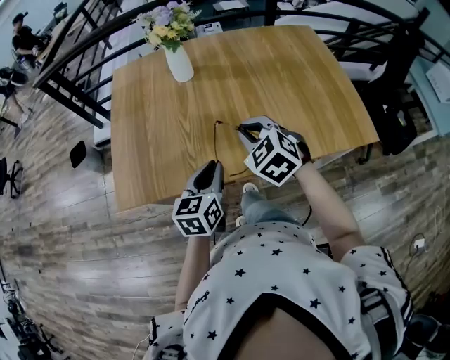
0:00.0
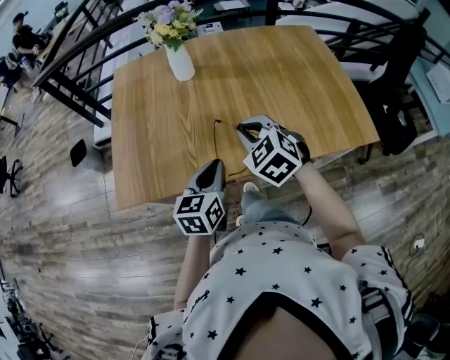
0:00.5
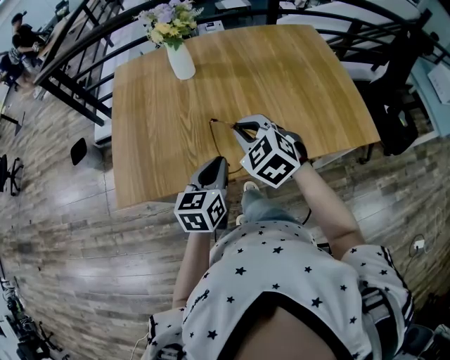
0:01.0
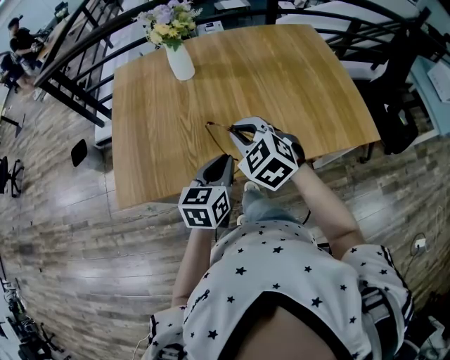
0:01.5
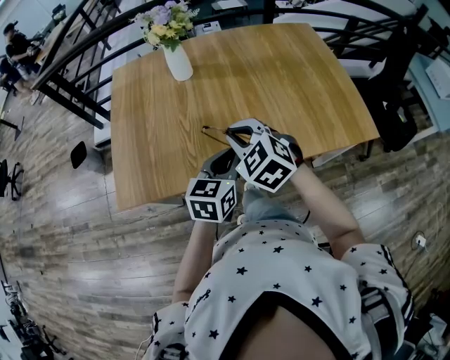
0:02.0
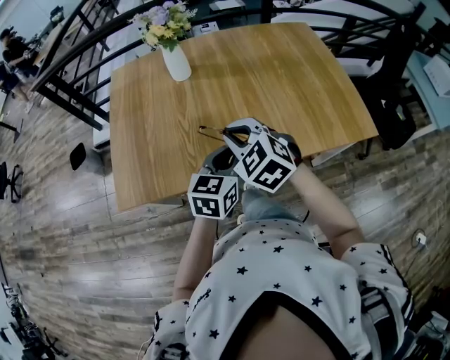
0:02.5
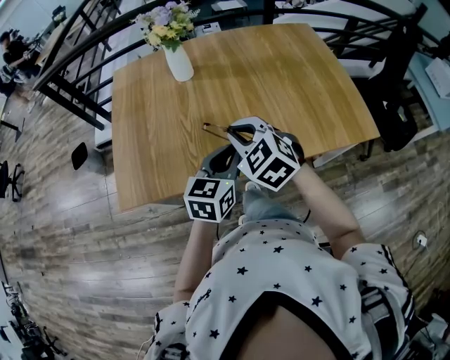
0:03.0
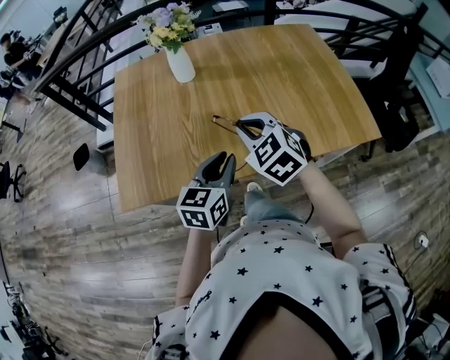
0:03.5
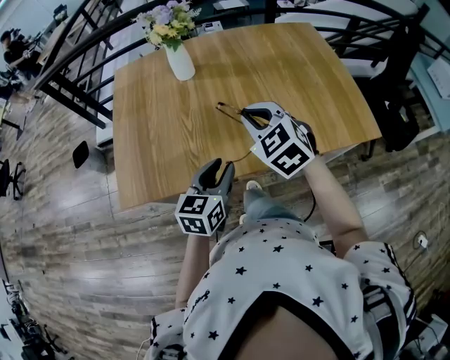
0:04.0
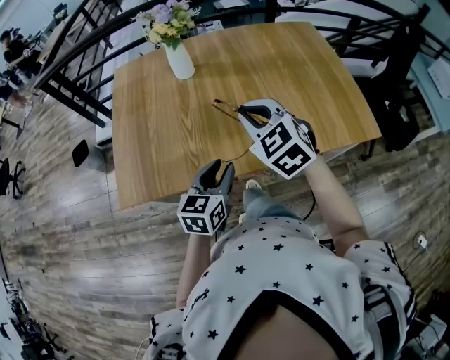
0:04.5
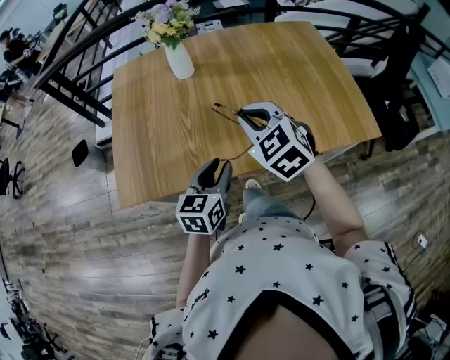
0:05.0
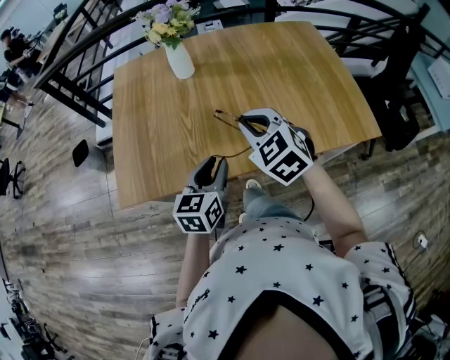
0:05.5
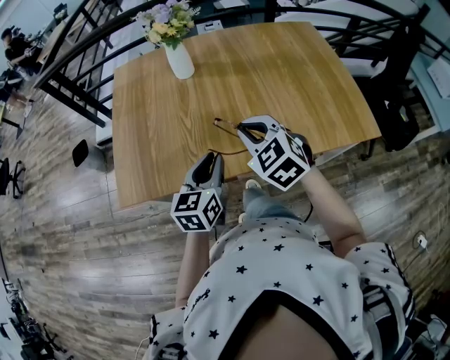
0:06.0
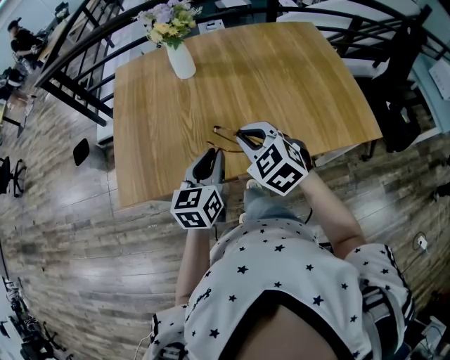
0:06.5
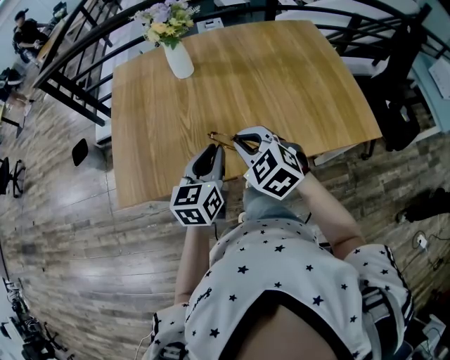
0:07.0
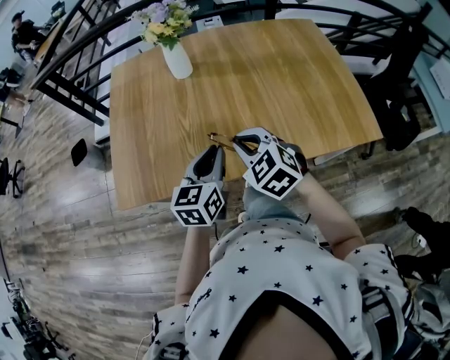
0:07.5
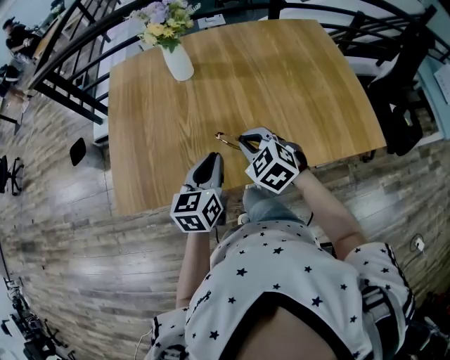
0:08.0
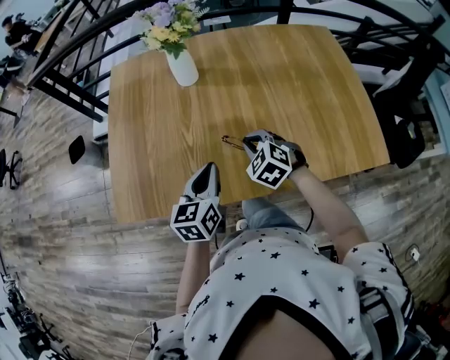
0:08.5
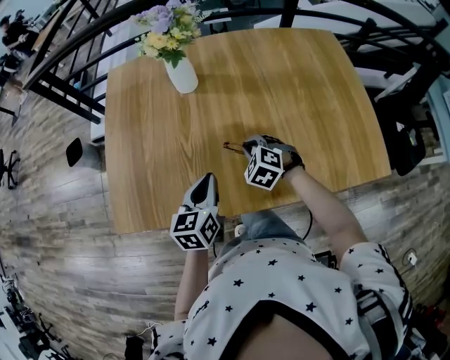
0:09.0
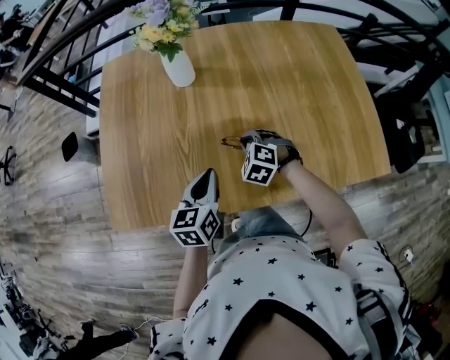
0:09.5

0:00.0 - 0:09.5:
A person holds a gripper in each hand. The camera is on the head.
0:00.0 - 0:02.0: The left gripper travels to the right by about 5 cm.
0:02.0 - 0:04.0: The left gripper opens. The right gripper shifts by about 5 cm.
0:04.0 - 0:05.5: The grippers make only small movements.
0:05.5 - 0:07.5: The right gripper shifts roughly 5 cm downward.
0:07.5 - 0:09.5: The left gripper heads forward and downward, covering approximately 10 cm. Meanwhile the right gripper heads downward and forward, covering roughly 25 cm, and swivels some 30 degrees.

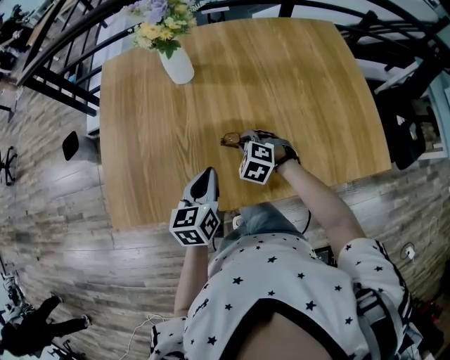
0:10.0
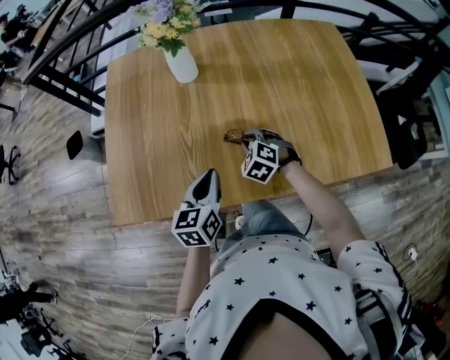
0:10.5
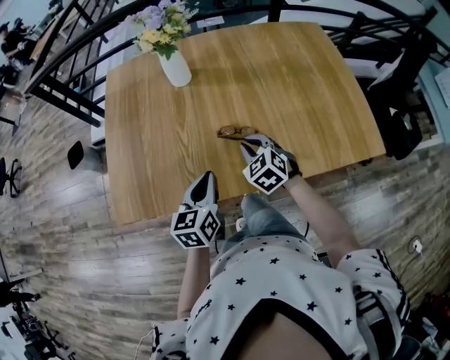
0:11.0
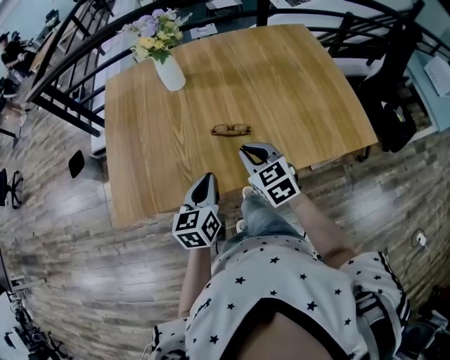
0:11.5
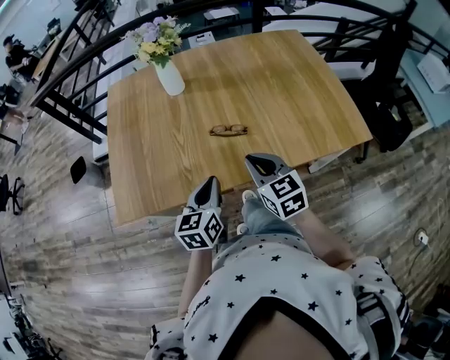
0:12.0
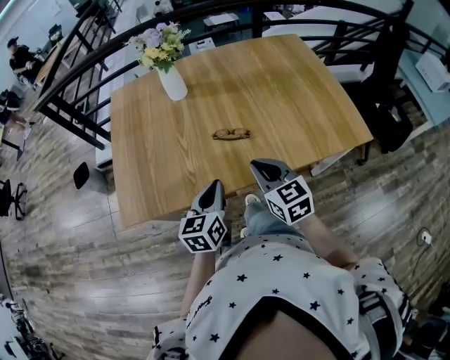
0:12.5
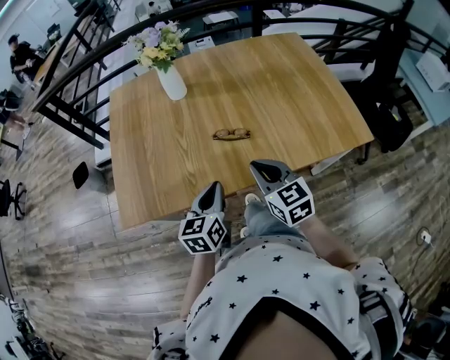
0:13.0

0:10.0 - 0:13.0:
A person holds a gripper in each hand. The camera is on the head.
0:10.0 - 0:11.5: The right gripper goes some 20 cm upward and backward, and points its fingers approximately 30 degrees further upward, while the left gripper shifts some 10 cm backward.
0:11.5 - 0:13.0: The right gripper goes some 5 cm backward.

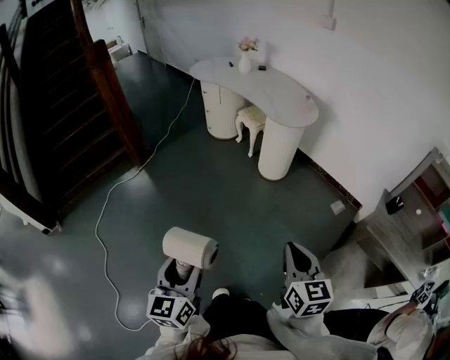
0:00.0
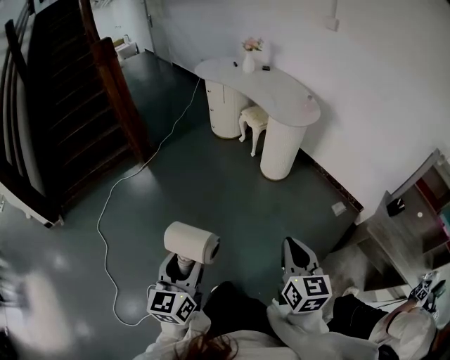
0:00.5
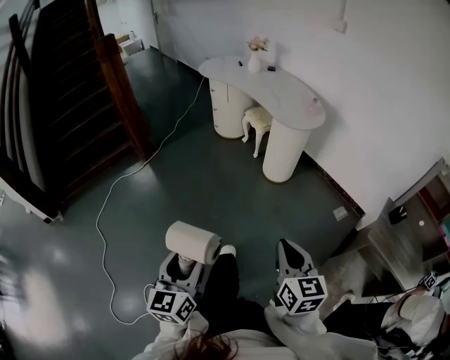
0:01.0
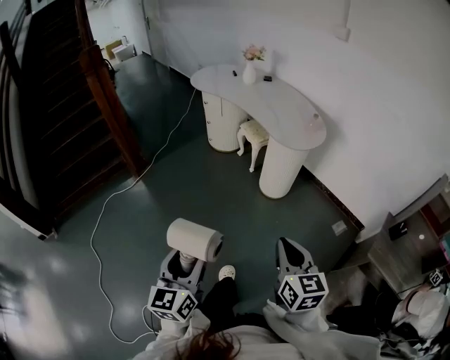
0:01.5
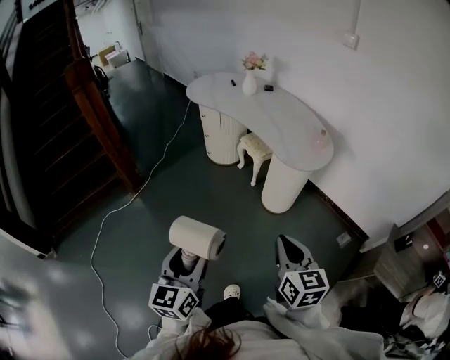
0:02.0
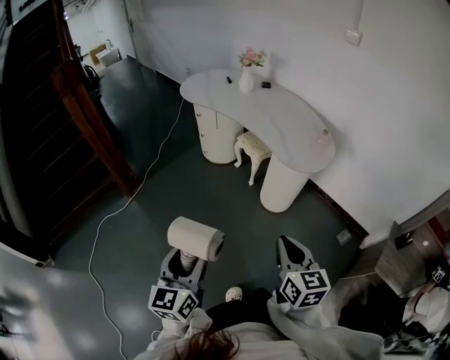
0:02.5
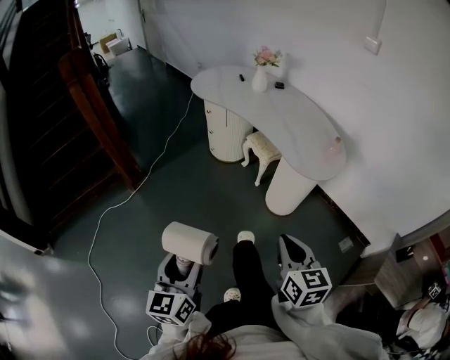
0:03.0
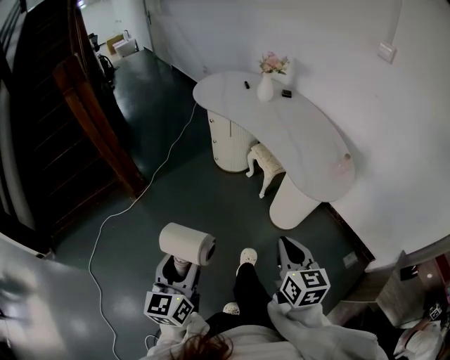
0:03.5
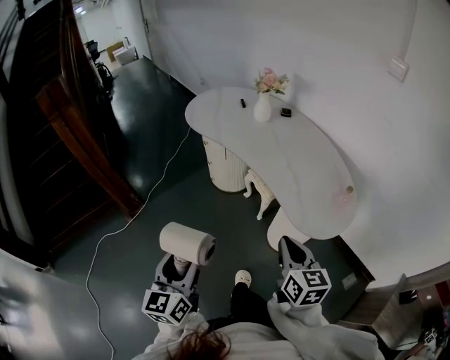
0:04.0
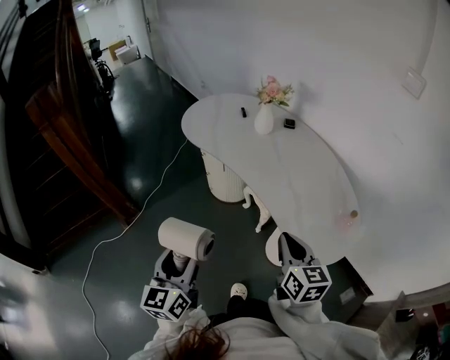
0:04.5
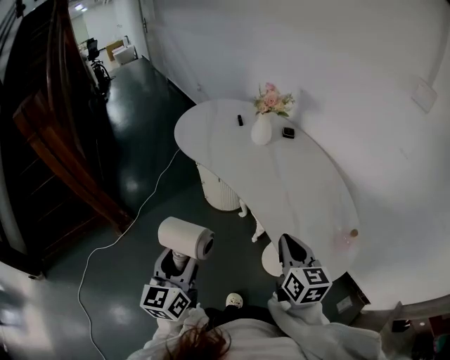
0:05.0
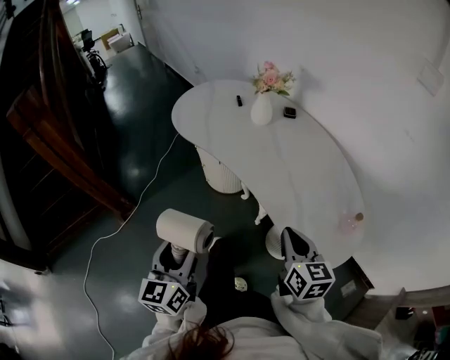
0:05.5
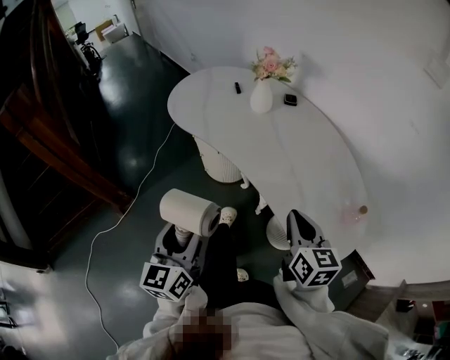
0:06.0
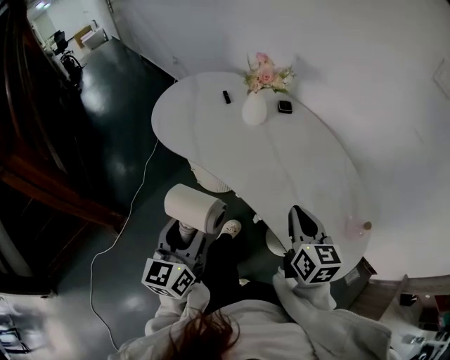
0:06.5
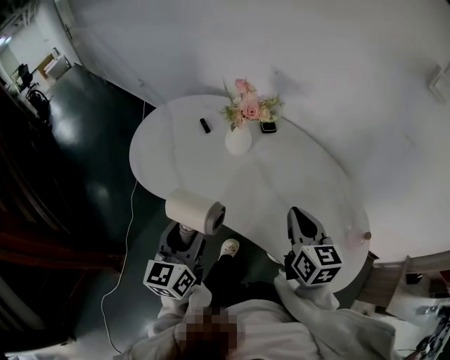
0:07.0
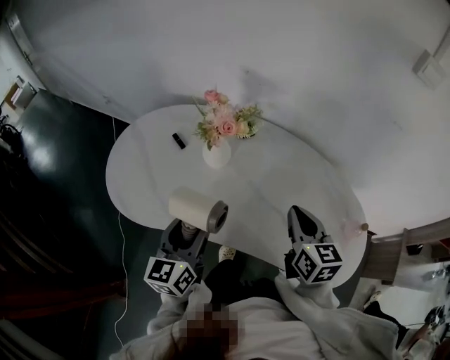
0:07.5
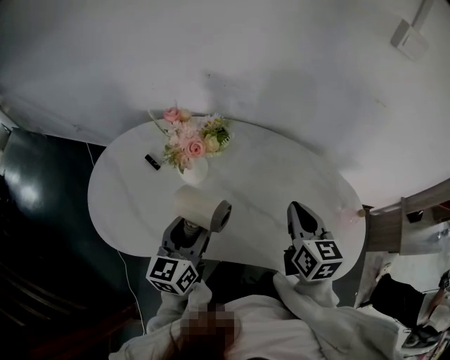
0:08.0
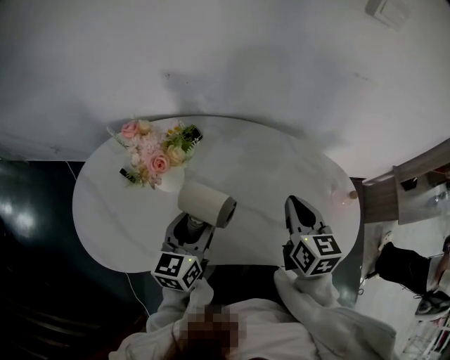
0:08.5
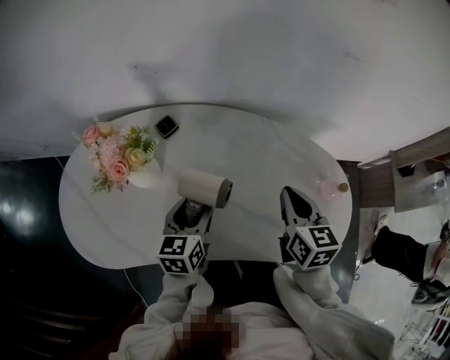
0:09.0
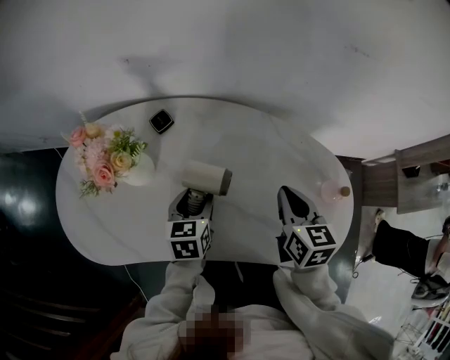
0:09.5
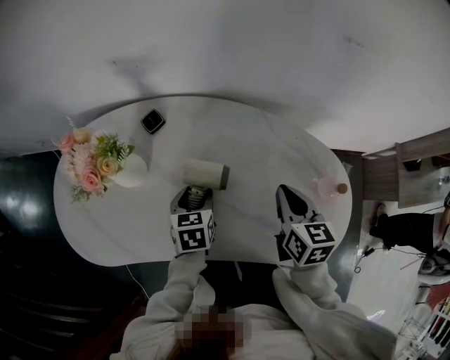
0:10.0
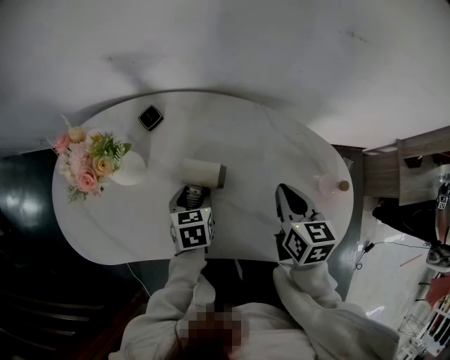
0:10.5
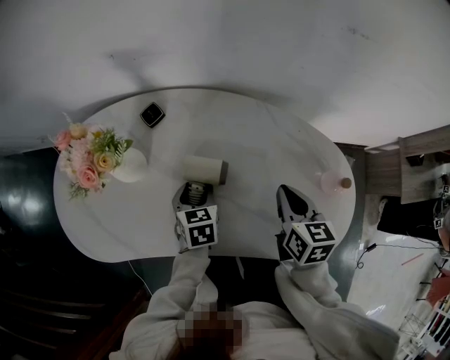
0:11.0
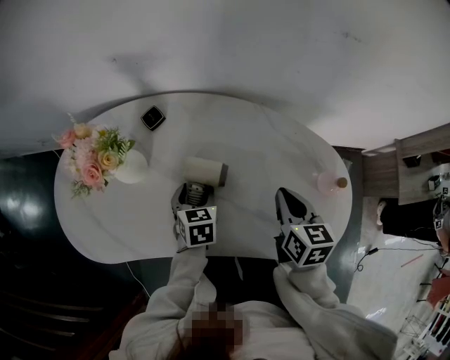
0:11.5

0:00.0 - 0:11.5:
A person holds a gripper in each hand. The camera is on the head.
0:00.0 - 0:02.0: The grippers both shift forward by roughly 30 cm.
0:02.0 - 0:04.0: Both grippers move forward, some 30 cm.
0:04.0 - 0:06.0: The two grippers go about 20 cm forward.
0:06.0 - 0:07.5: The right gripper changes place by roughly 25 cm, and changes its angle by roughly 30 degrees; the left gripper shifts by roughly 35 cm, and swivels some 30 degrees.
0:07.5 - 0:09.5: The left gripper moves forward, to the right and downward, roughly 25 cm, and angles its fingers downward, by approximately 30 degrees. The right gripper heads to the right, downward and forward, covering approximately 15 cm, and changes its angle by roughly 20 degrees.
0:09.5 - 0:11.5: The left gripper shifts roughly 5 cm downward.

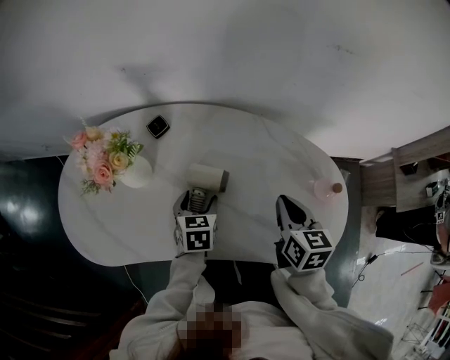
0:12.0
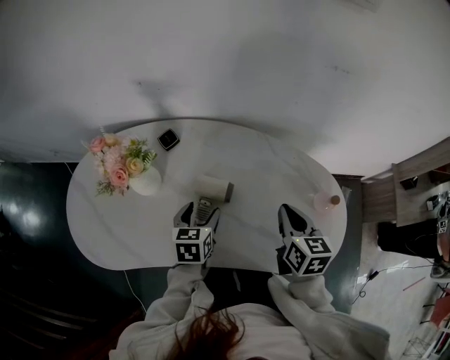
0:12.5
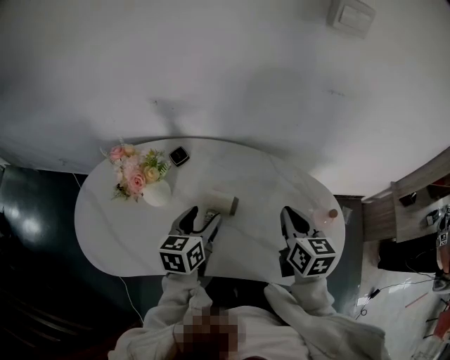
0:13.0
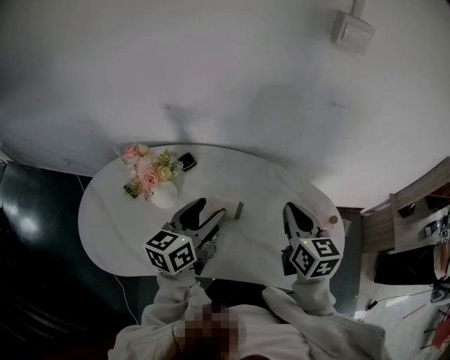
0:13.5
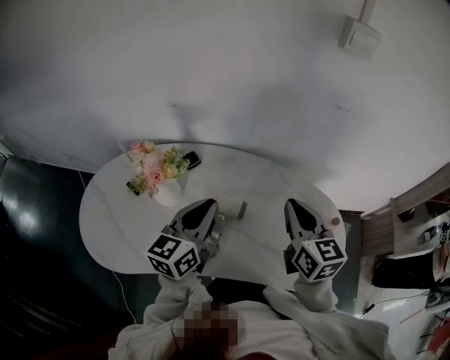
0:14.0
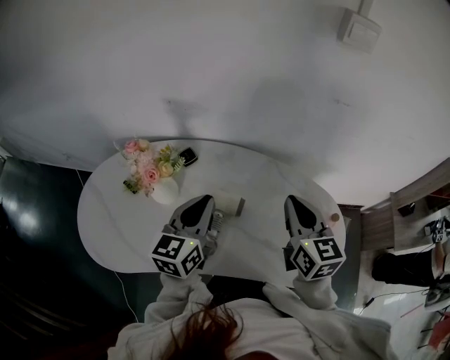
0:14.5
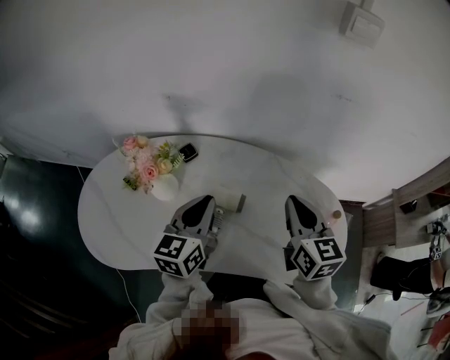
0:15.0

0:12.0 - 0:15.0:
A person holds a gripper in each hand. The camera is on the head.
0:12.0 - 0:13.5: The right gripper goes approximately 10 cm upward; the left gripper travels upward by approximately 20 cm, and tilts its fingers some 40 degrees upward.
0:13.5 - 0:15.0: The left gripper closes up.
